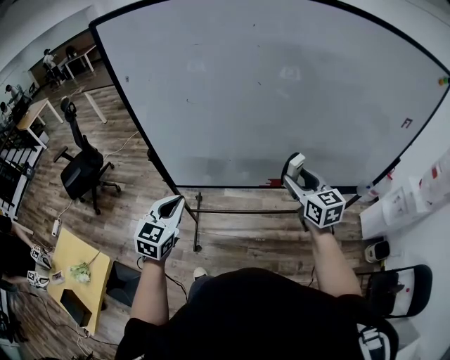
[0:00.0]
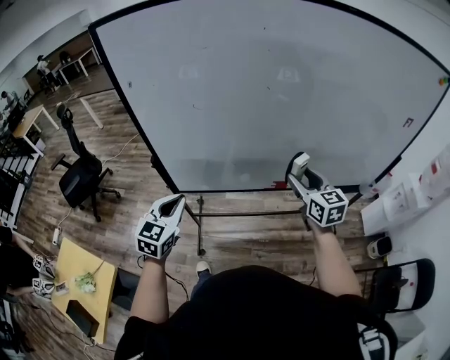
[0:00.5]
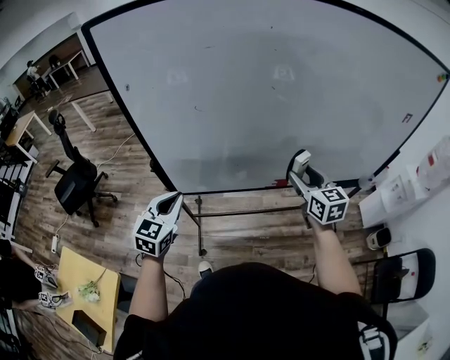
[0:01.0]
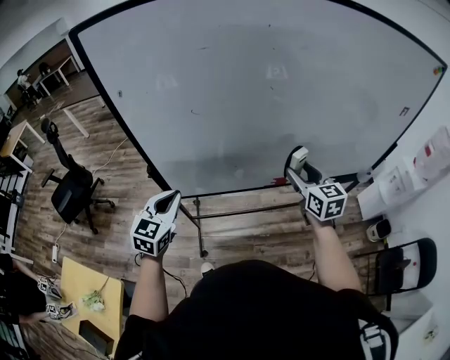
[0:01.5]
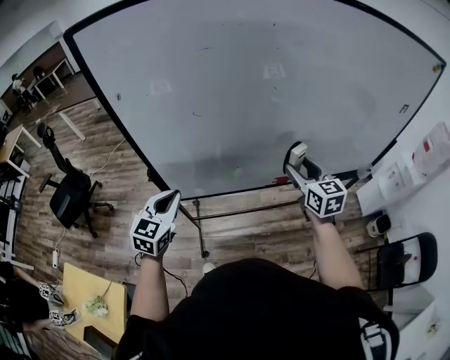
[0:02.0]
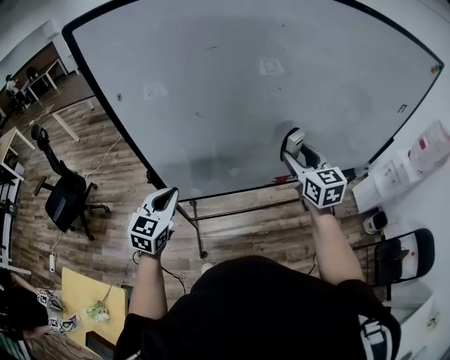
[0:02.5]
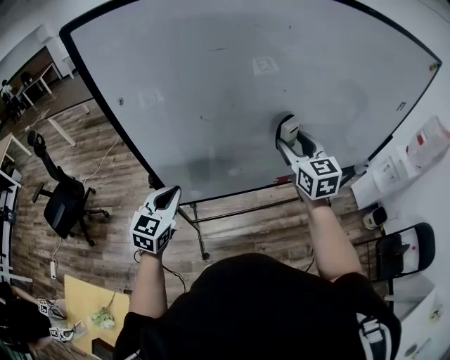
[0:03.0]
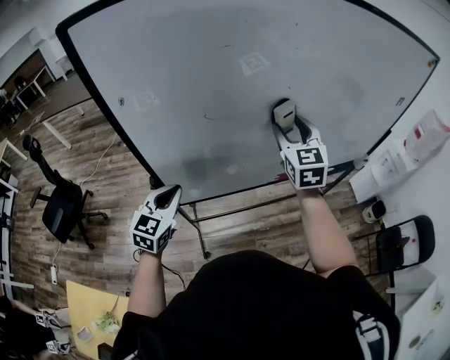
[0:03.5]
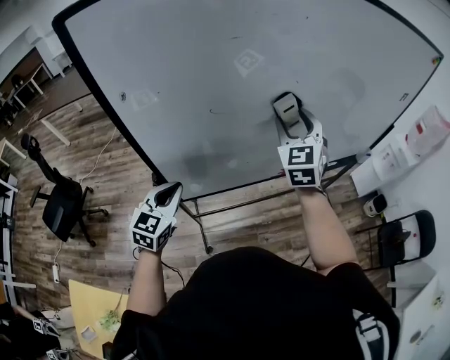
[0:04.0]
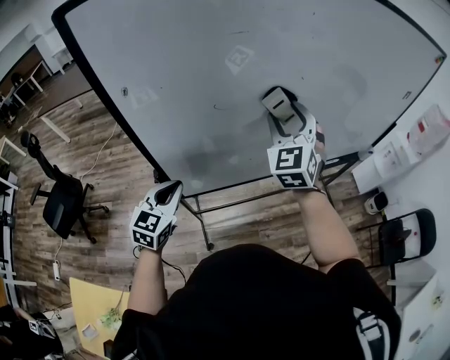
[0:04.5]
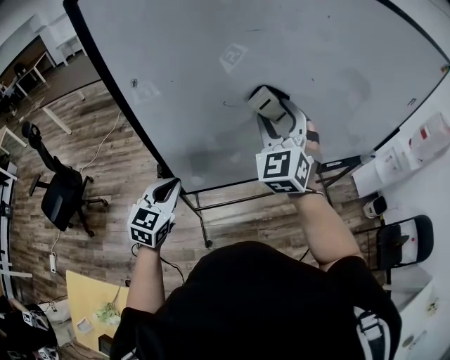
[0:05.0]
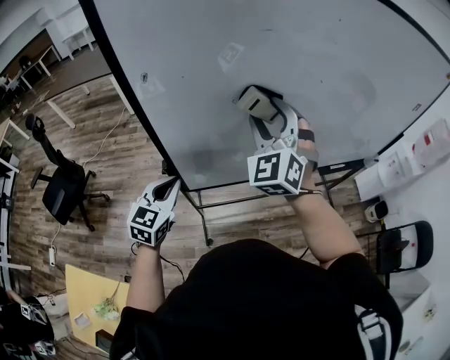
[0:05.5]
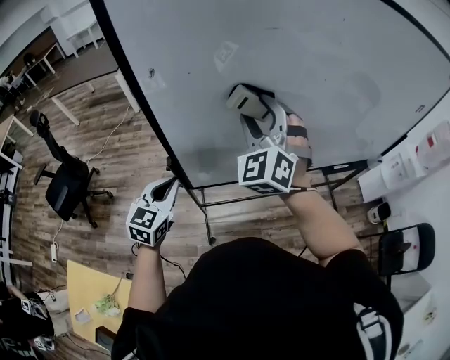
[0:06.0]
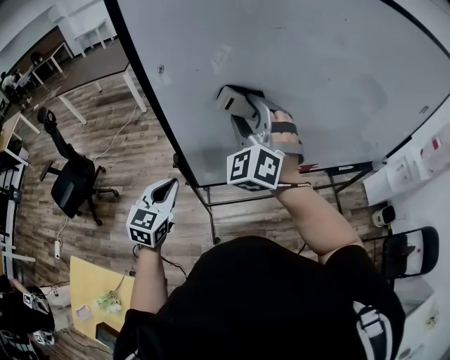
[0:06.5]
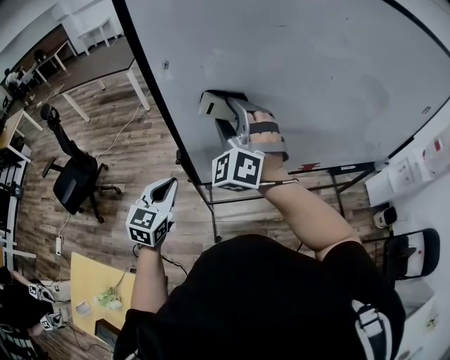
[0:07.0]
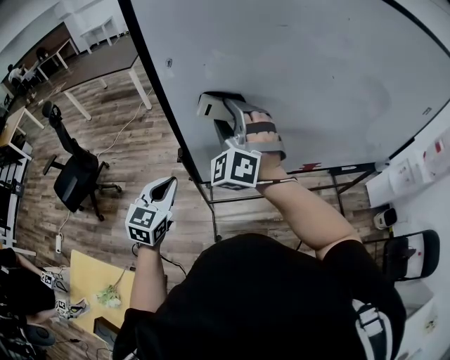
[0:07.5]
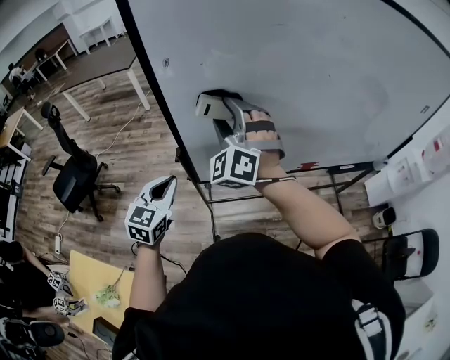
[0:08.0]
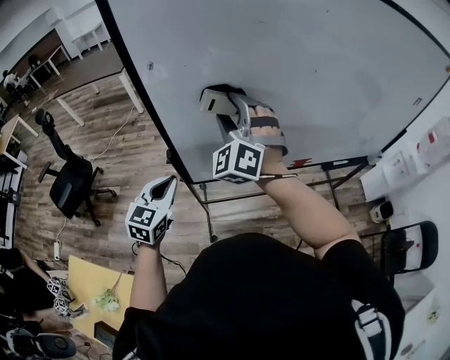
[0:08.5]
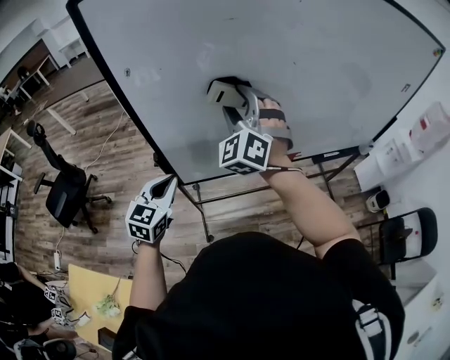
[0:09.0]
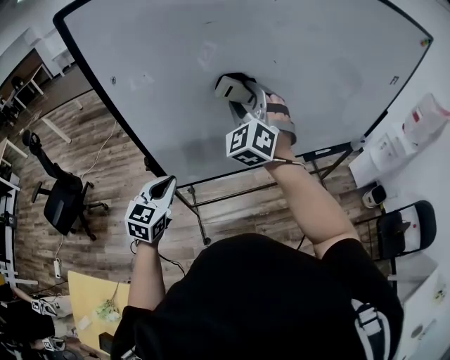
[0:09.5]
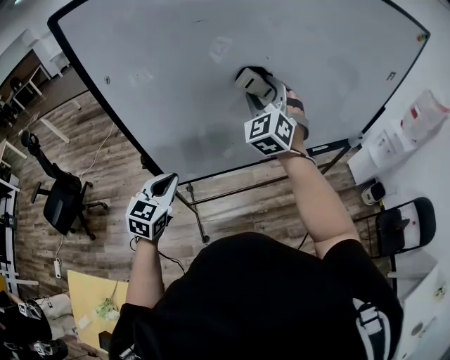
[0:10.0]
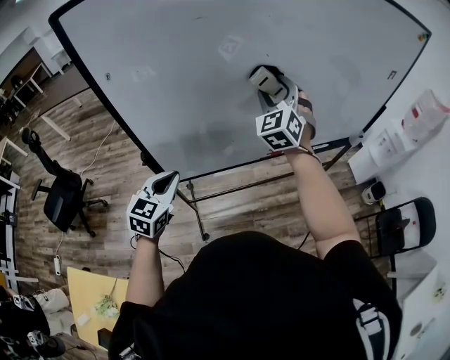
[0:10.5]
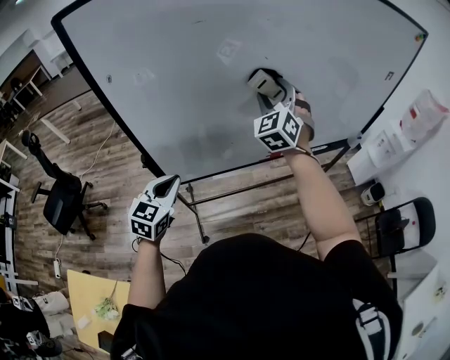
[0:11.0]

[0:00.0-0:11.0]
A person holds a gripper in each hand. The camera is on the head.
0:00.0 to 0:02.0: The right gripper changes place by approximately 5 cm, while the left gripper goes some 10 cm forward and to the left.
0:02.0 to 0:03.5: The left gripper ends up some 5 cm from where it was, while the right gripper shifts some 15 cm upward, to the left and forward, and turns by some 20 degrees.
0:03.5 to 0:05.5: The right gripper travels to the left by approximately 15 cm, and swivels approximately 40 degrees, while the left gripper goes some 5 cm to the left.
0:05.5 to 0:07.5: The left gripper goes some 5 cm backward. Meanwhile the right gripper goes some 15 cm to the left.
0:07.5 to 0:09.0: The right gripper moves to the right, some 10 cm; the left gripper is displaced to the right by roughly 10 cm.
0:09.0 to 0:11.0: The right gripper heads to the right and forward, covering approximately 20 cm; the left gripper is displaced to the right by about 5 cm.

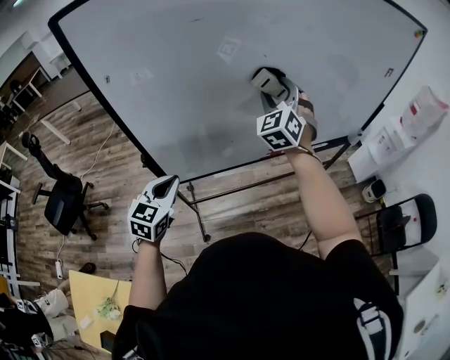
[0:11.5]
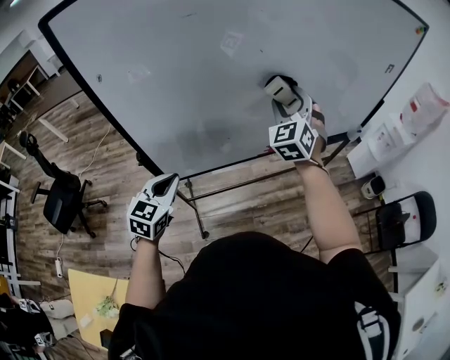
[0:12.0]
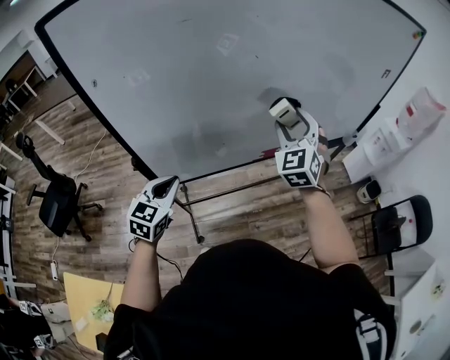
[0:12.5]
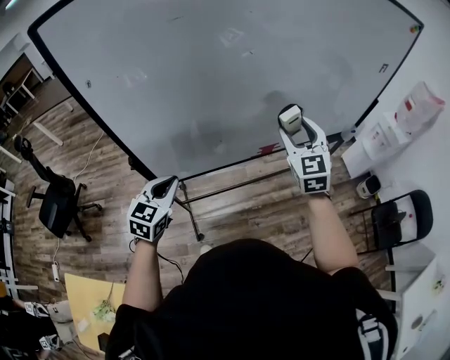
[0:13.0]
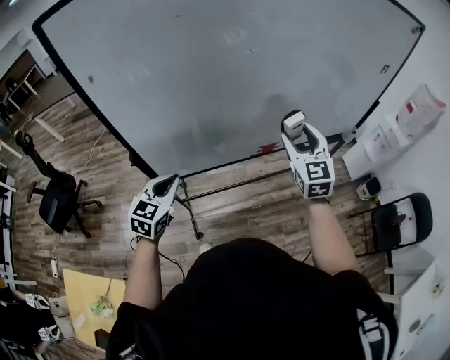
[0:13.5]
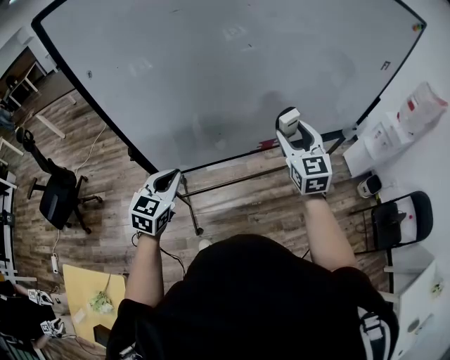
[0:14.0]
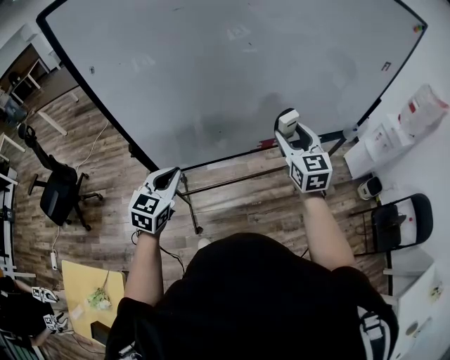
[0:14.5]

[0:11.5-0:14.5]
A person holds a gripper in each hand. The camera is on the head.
0:11.5 to 0:13.0: The right gripper is displaced to the right, backward and downward by about 15 cm, and rotates roughly 30 degrees.
0:13.0 to 0:14.5: The grippers move only a little.

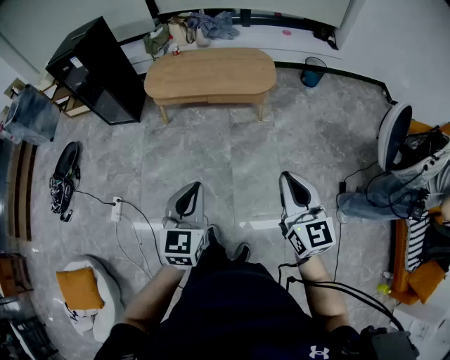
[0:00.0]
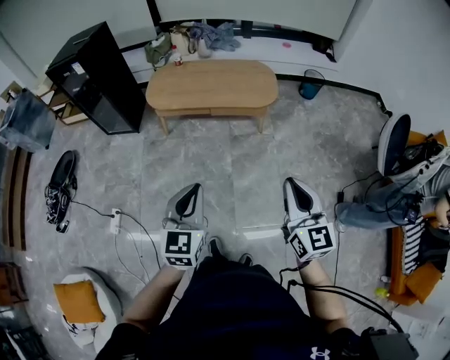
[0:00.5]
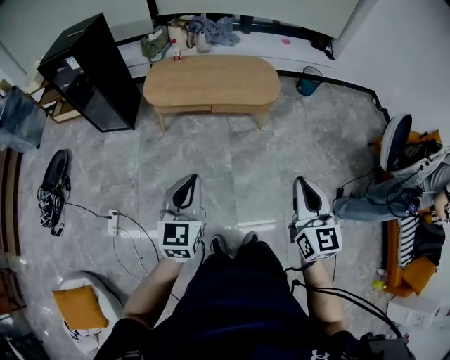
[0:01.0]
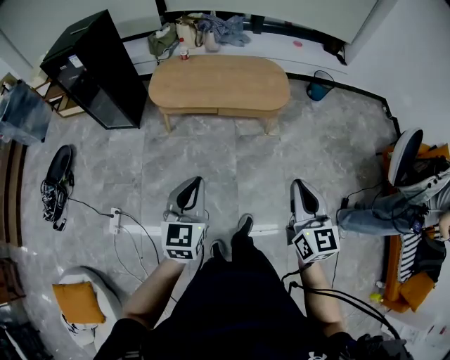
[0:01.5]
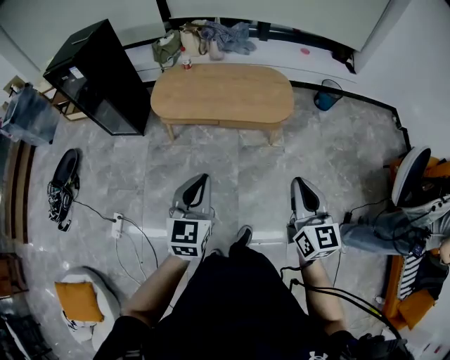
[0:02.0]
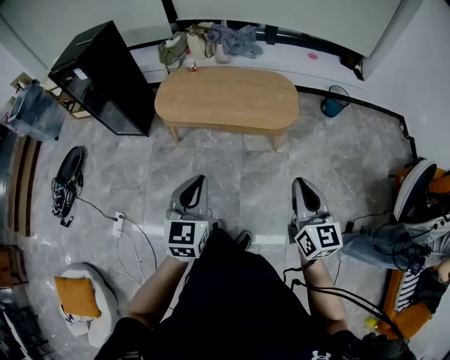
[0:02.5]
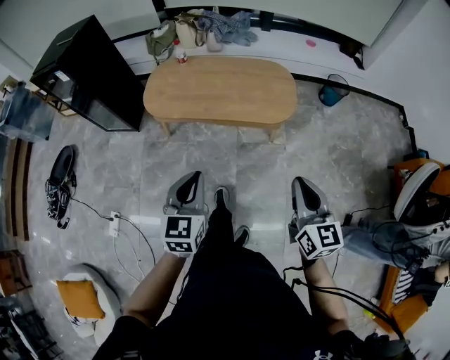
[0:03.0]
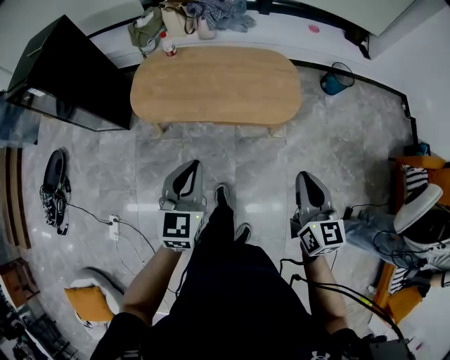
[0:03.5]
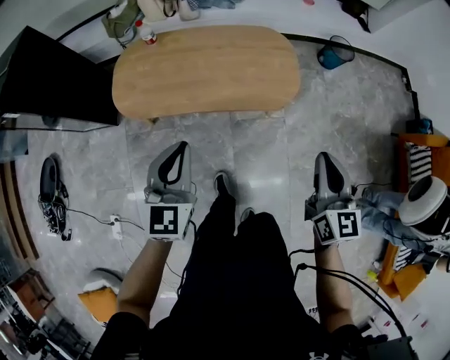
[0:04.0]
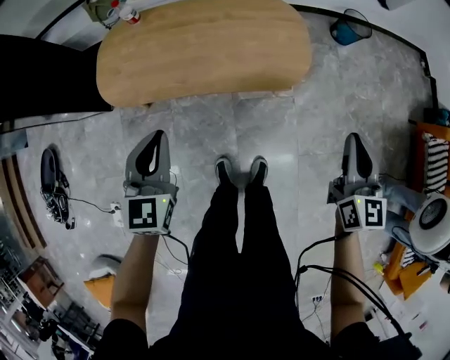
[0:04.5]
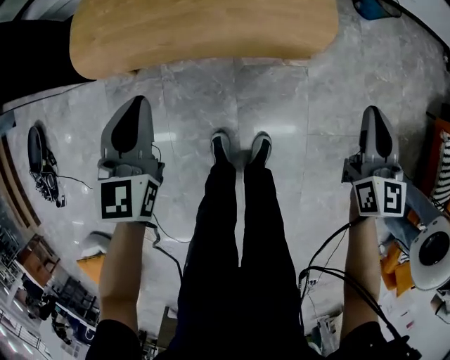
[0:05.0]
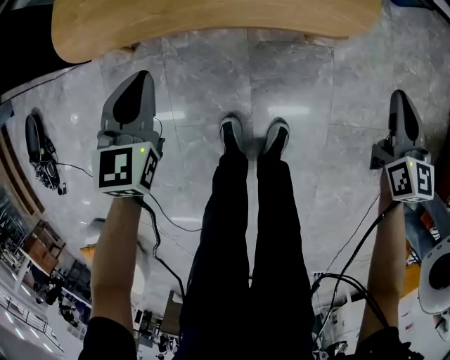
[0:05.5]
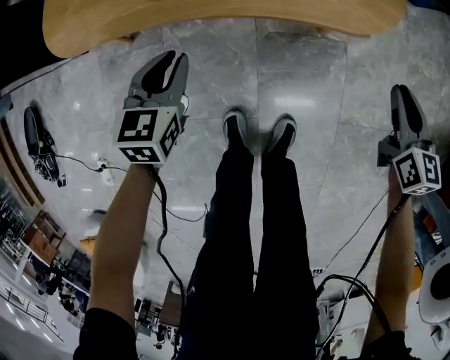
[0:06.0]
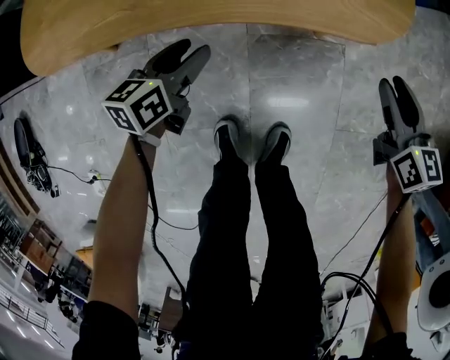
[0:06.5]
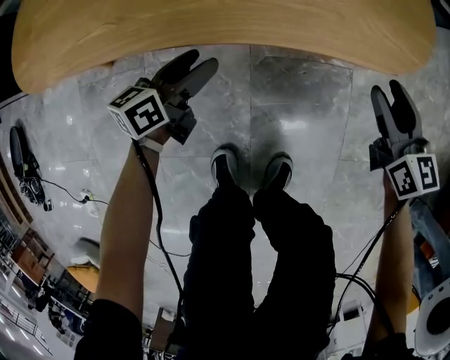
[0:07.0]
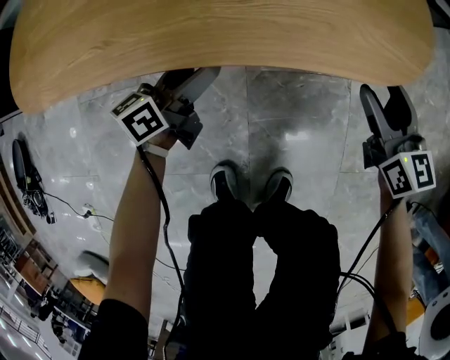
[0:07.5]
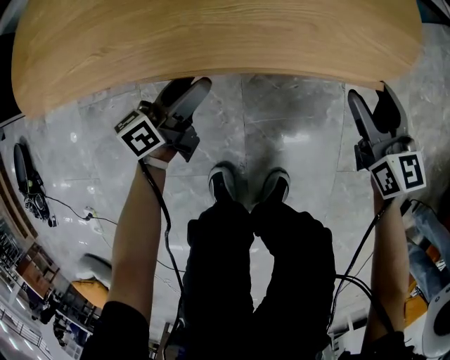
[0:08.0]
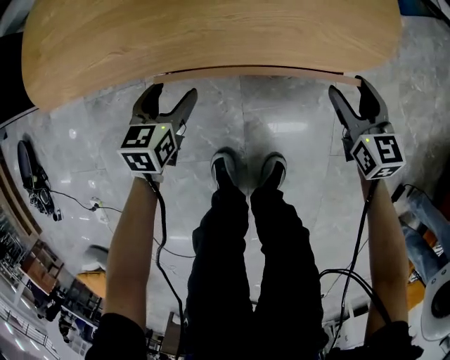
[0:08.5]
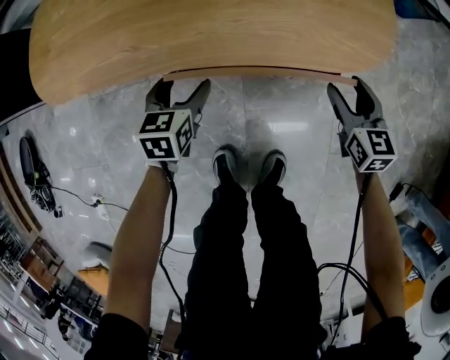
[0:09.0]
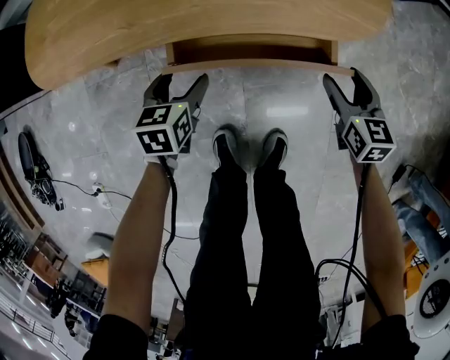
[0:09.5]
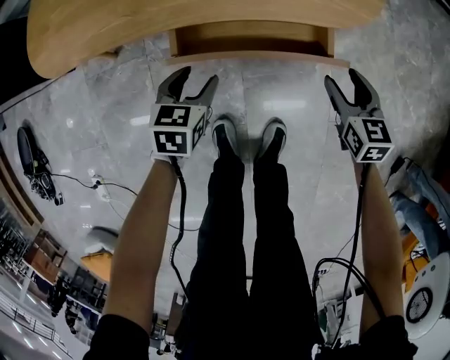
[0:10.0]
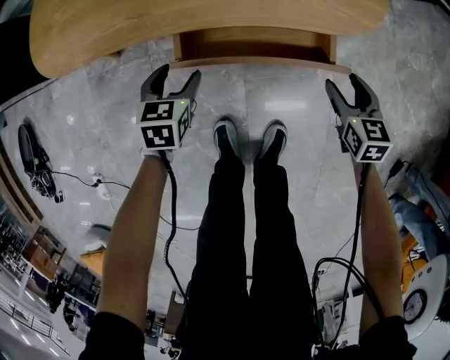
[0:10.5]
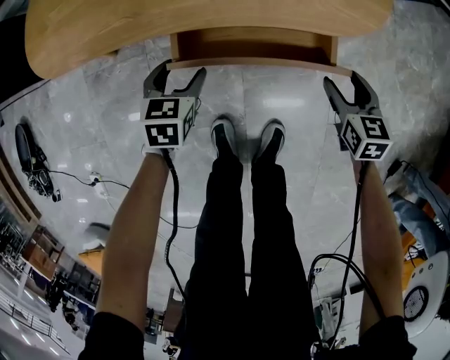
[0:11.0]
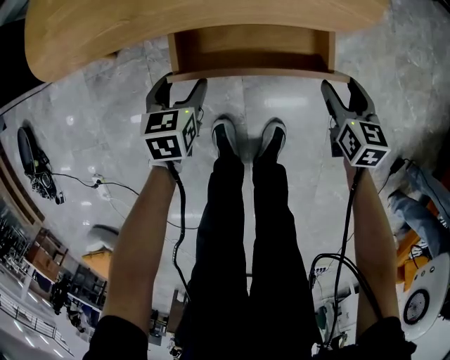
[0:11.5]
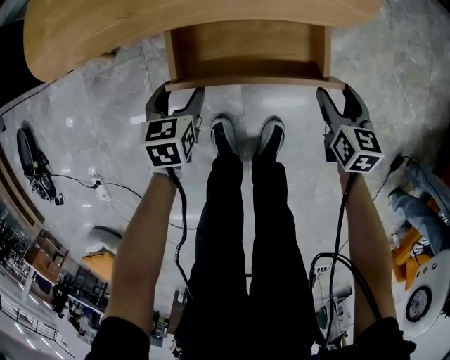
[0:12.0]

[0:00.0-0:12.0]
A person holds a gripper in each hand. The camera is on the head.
0:00.0 to 0:02.0: Both grippers move forward, some 20 cm.
0:02.0 to 0:04.0: The grippers both shift forward by some 30 cm.
0:04.0 to 0:06.0: Both grippers travel together downward, approximately 50 cm. The left gripper turns by roughly 20 degrees.
0:06.0 to 0:08.0: The left gripper goes about 20 cm downward, forward and to the right, tilts its fingers roughly 30 degrees upward, and opens its fingers; the right gripper heads downward, forward and to the left, covering approximately 15 cm, and opens up.
0:08.0 to 0:10.0: The right gripper goes approximately 10 cm backward, and turns by some 20 degrees, while the left gripper heads backward and upward, covering roughly 10 cm, and angles its fingers downward, by approximately 40 degrees.
0:10.0 to 0:12.0: The grippers make only small movements.
